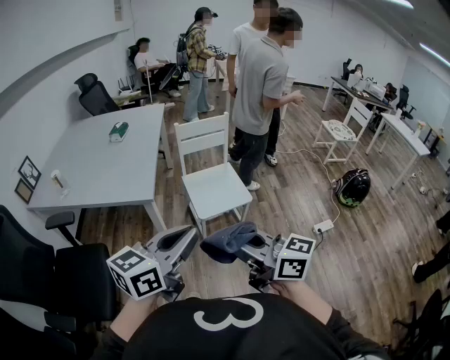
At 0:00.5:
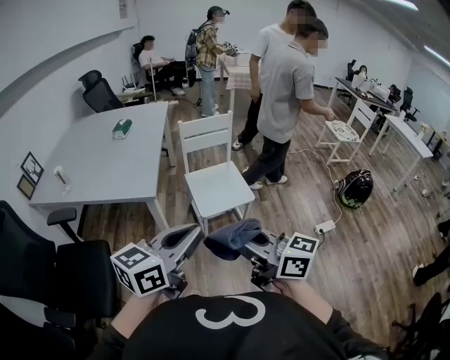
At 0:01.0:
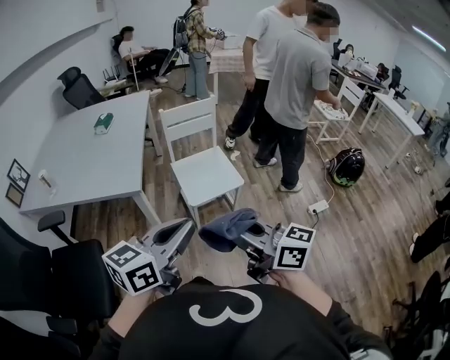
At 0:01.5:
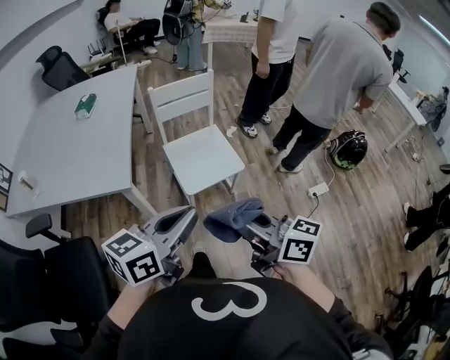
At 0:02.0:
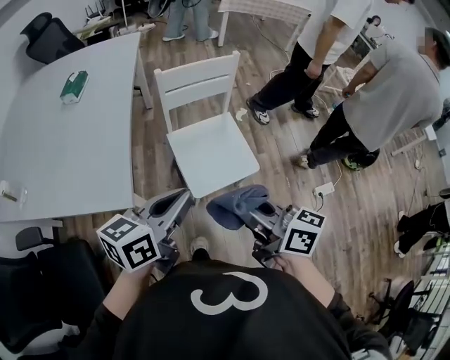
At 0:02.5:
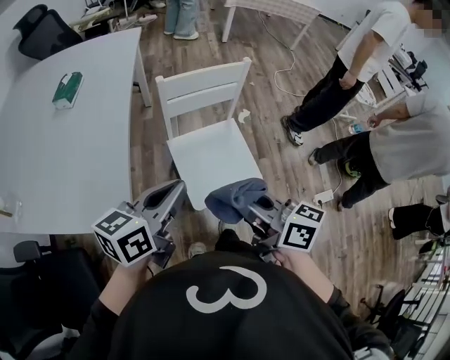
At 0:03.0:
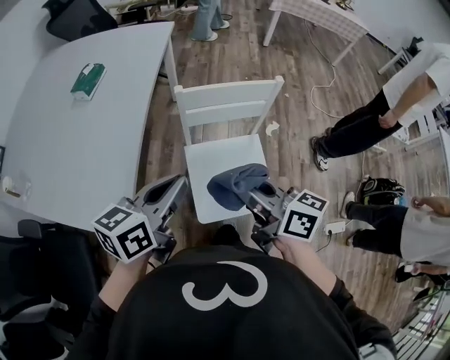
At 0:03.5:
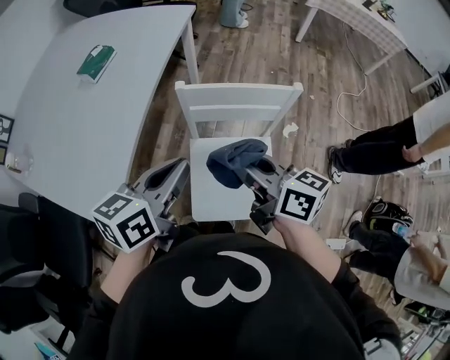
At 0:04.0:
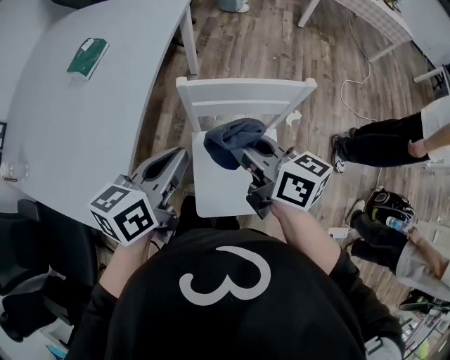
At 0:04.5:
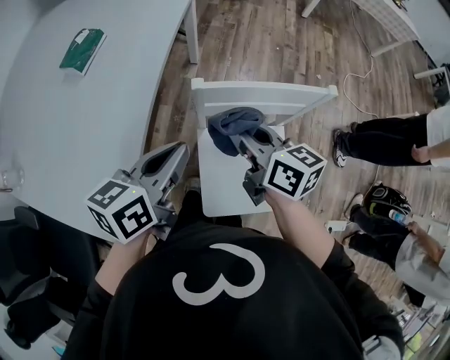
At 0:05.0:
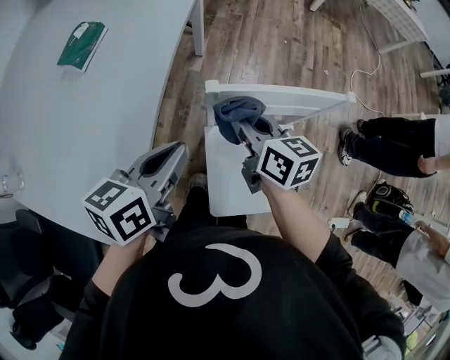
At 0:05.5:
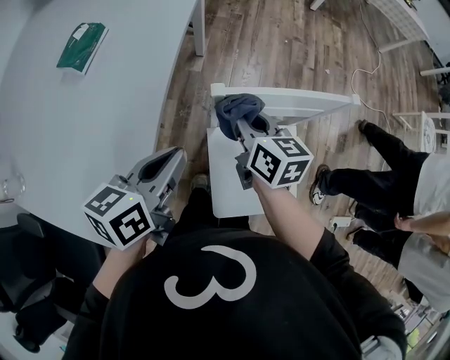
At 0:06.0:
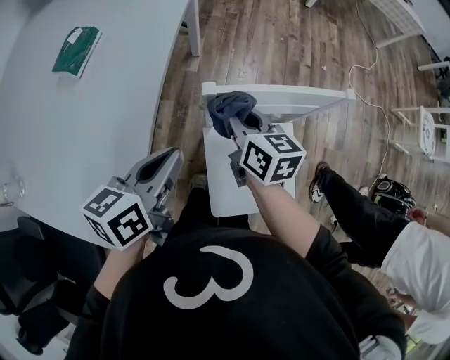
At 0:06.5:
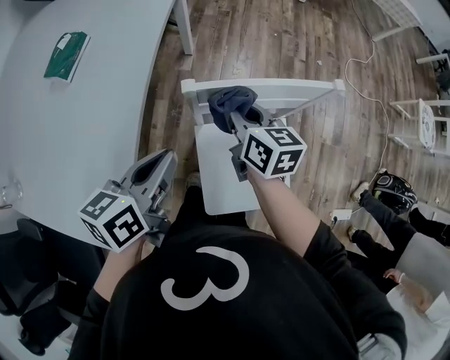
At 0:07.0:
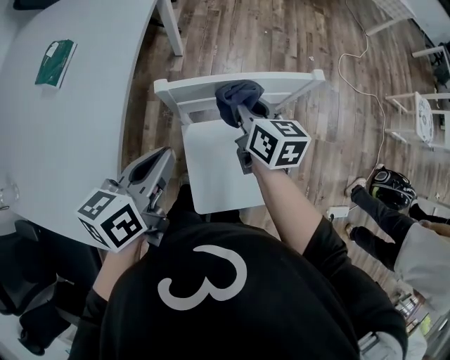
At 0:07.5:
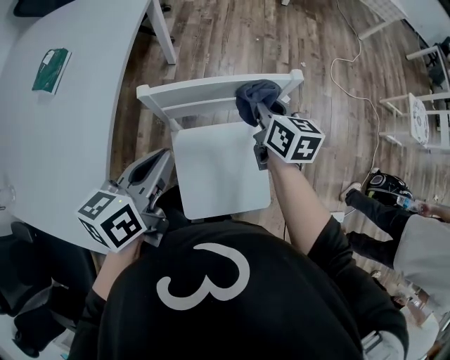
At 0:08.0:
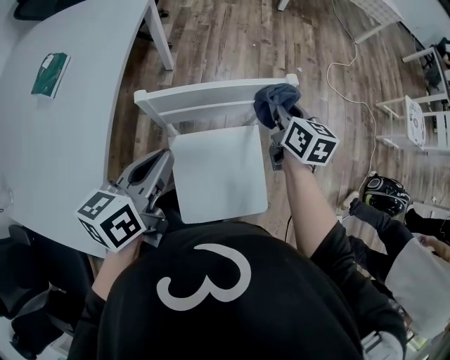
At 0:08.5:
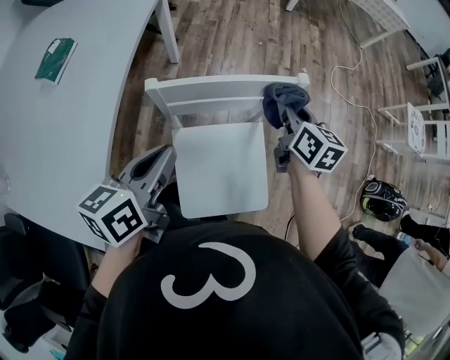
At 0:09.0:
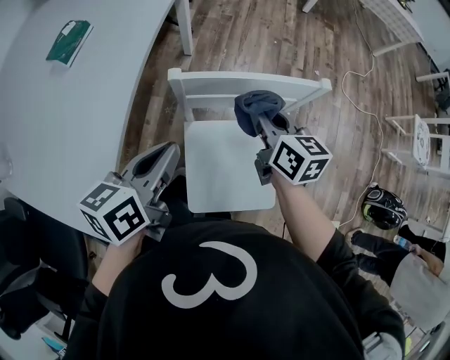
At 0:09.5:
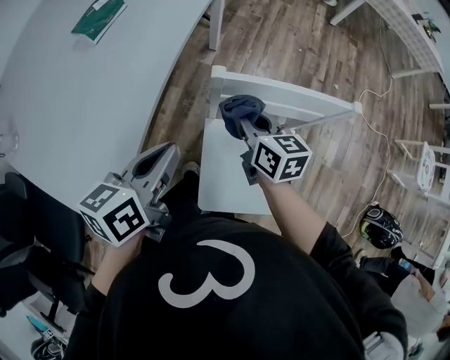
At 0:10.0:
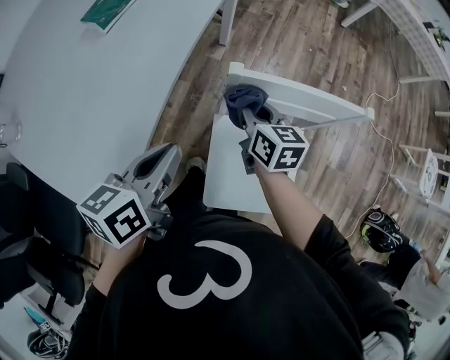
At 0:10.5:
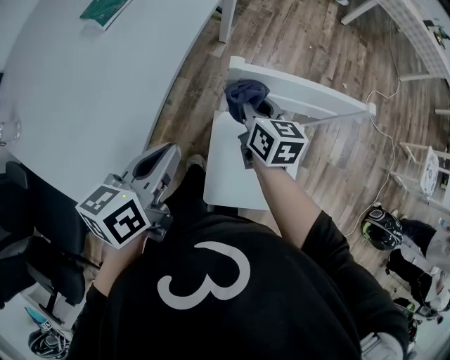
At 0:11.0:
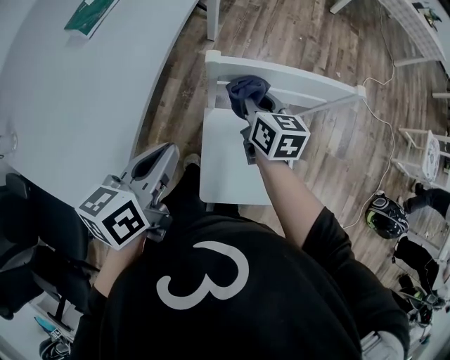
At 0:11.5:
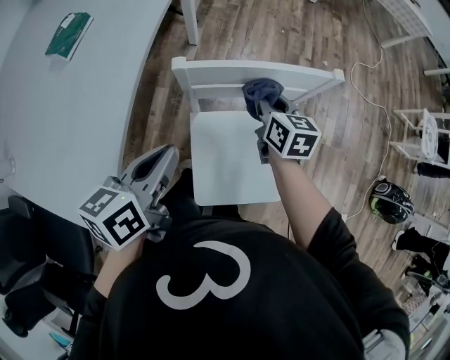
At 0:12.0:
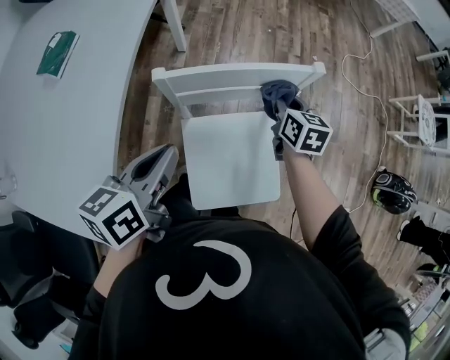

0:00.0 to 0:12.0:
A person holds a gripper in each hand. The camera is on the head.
0:00.0 to 0:02.0: Both grippers move forward, about 30 cm. The right gripper turns by approximately 20 degrees.
0:02.0 to 0:04.0: The two grippers go approximately 35 cm forward. The left gripper changes its angle by some 30 degrees.
0:04.0 to 0:06.0: The left gripper travels to the left, forward and downward by approximately 10 cm, while the right gripper travels forward, downward and to the left by roughly 20 cm, and turns by about 20 degrees.
0:06.0 to 0:08.0: The left gripper goes approximately 10 cm to the right. The right gripper shifts roughly 25 cm to the right.
0:08.0 to 0:10.0: The right gripper is displaced to the left by about 25 cm, and rotates approximately 20 degrees, while the left gripper travels to the left by approximately 15 cm.
0:10.0 to 0:12.0: The left gripper goes some 10 cm to the right. The right gripper travels to the right by some 25 cm, and swivels roughly 20 degrees.

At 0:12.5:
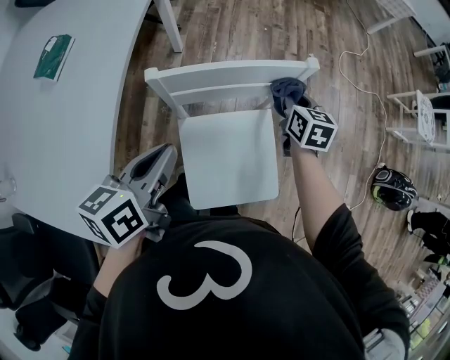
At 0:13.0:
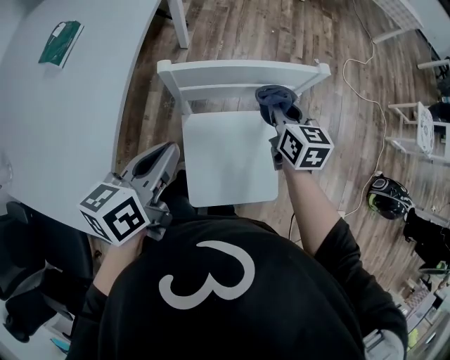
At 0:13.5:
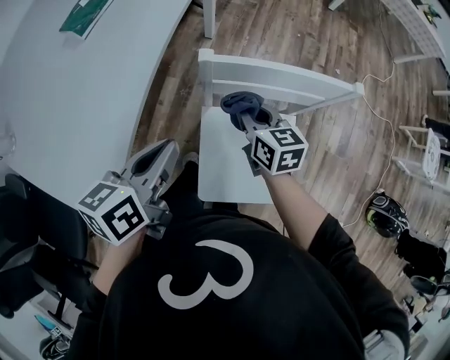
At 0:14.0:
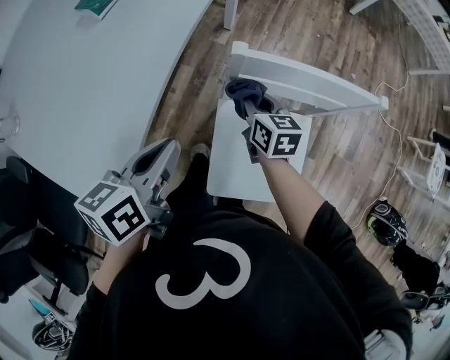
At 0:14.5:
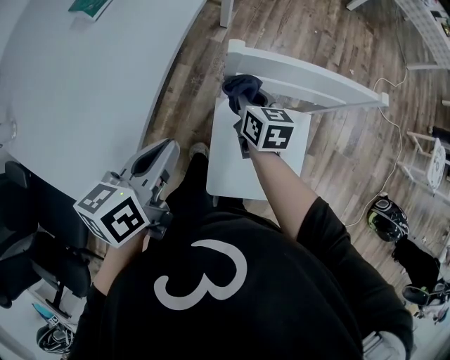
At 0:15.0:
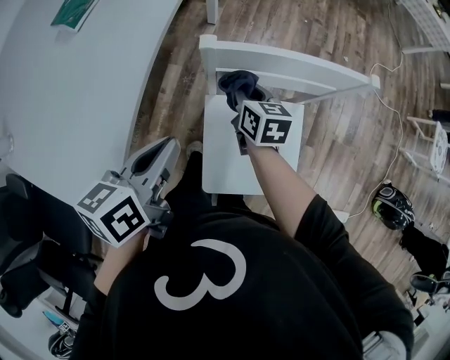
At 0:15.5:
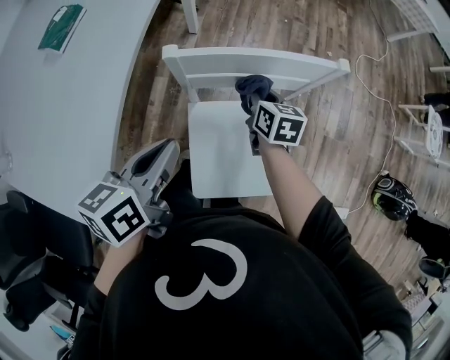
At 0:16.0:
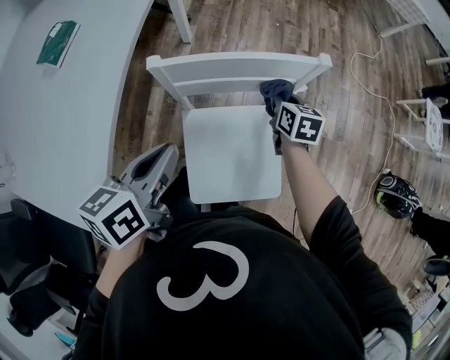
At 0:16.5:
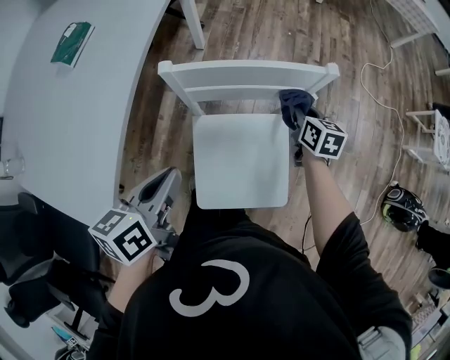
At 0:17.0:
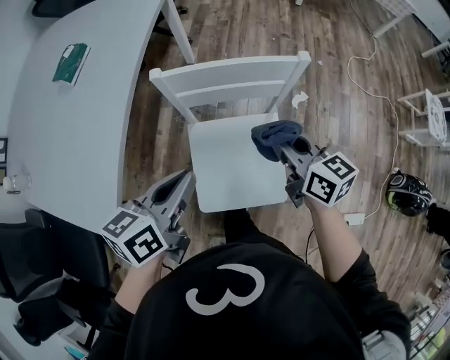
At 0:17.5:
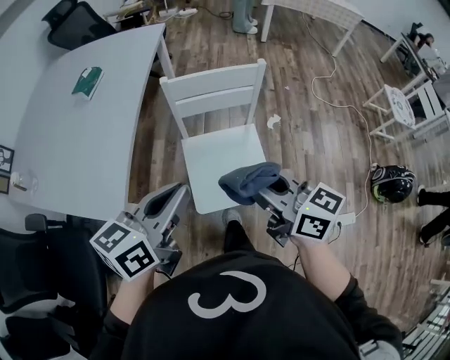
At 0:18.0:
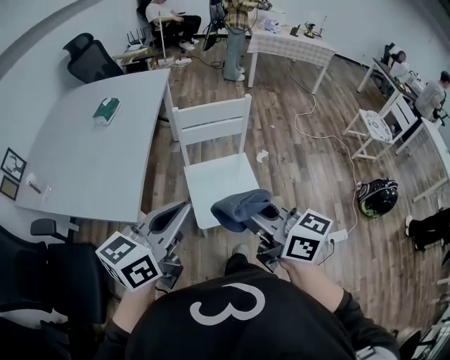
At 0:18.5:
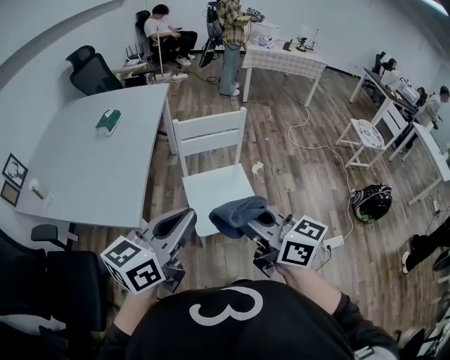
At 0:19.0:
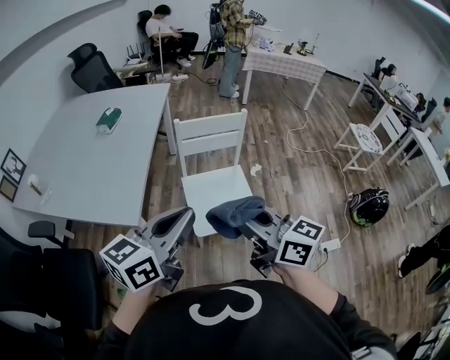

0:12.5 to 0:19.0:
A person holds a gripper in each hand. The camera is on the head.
0:12.5 to 0:14.5: The left gripper heads to the left, covering about 10 cm; the right gripper heads to the left, covering roughly 30 cm, and rotates roughly 20 degrees.
0:14.5 to 0:17.0: The right gripper moves to the right, upward and backward, approximately 30 cm, while the left gripper heads to the right, covering about 15 cm.
0:17.0 to 0:19.0: Both grippers move backward and upward, approximately 40 cm. The left gripper changes its angle by roughly 30 degrees.

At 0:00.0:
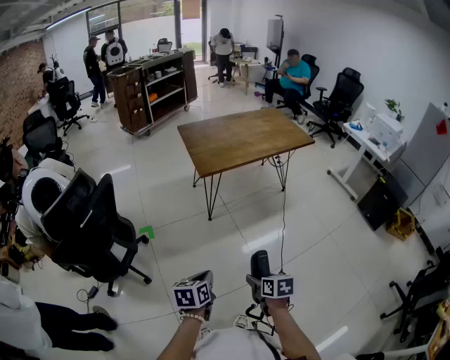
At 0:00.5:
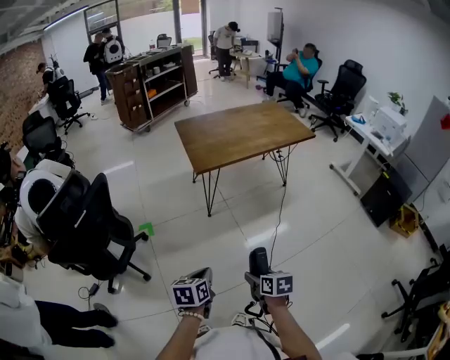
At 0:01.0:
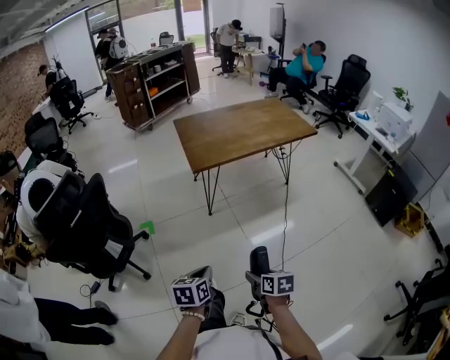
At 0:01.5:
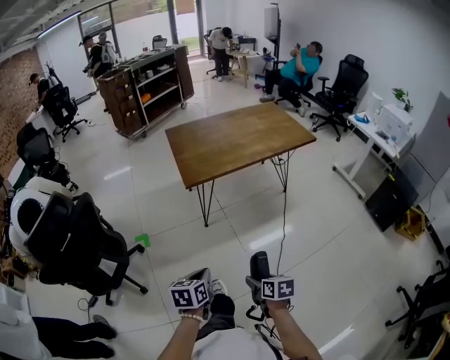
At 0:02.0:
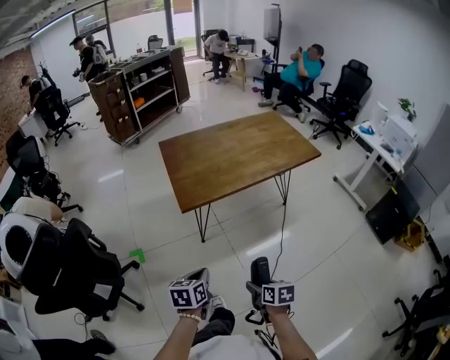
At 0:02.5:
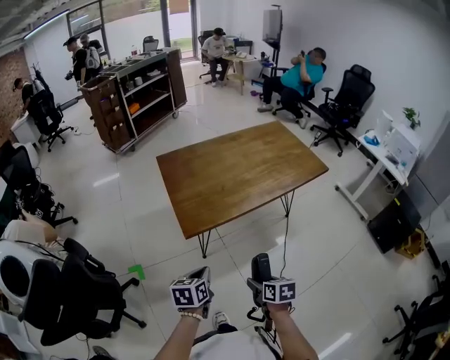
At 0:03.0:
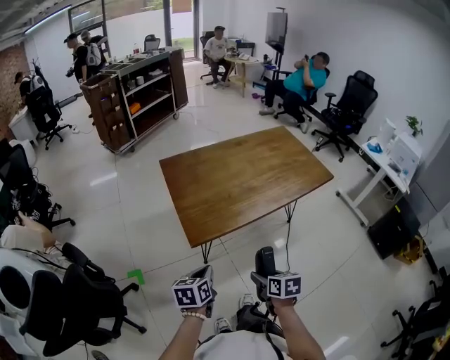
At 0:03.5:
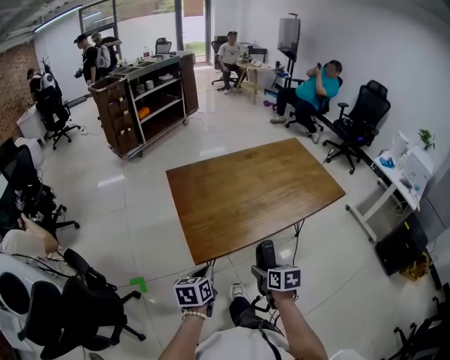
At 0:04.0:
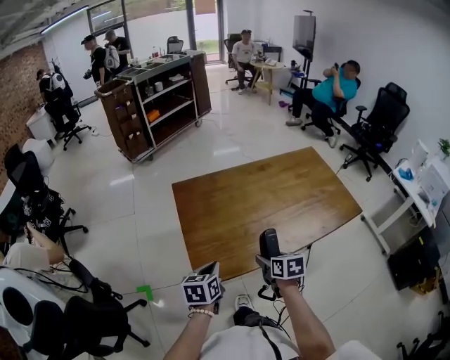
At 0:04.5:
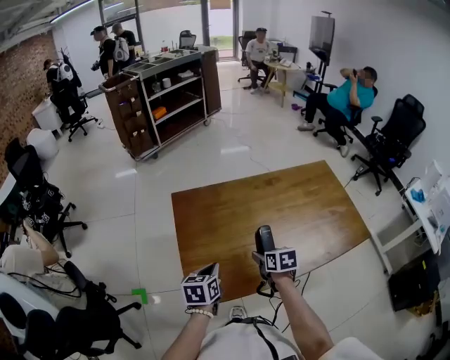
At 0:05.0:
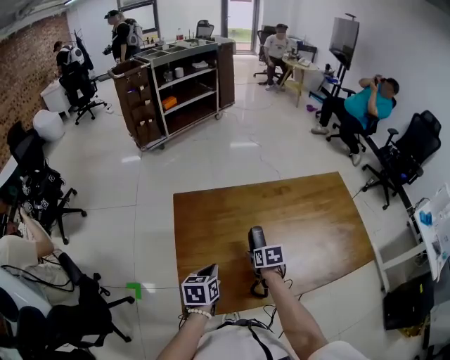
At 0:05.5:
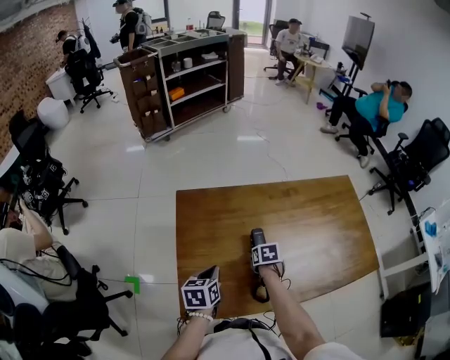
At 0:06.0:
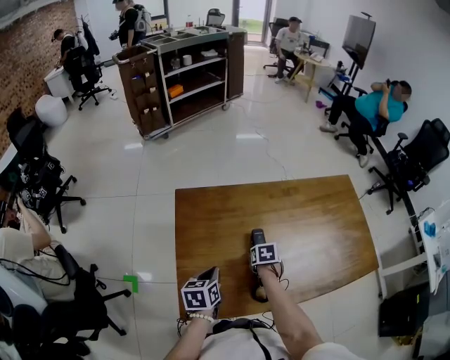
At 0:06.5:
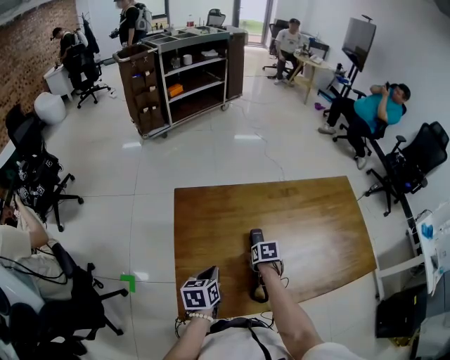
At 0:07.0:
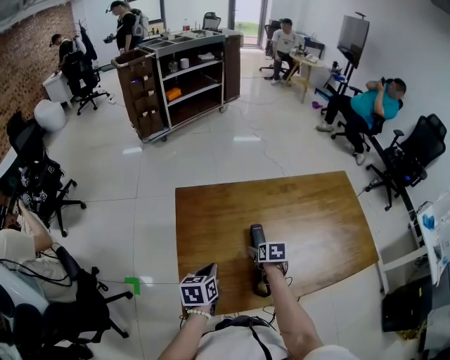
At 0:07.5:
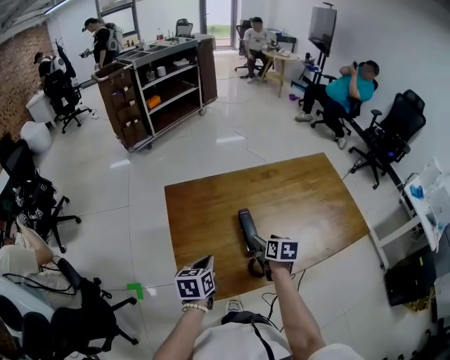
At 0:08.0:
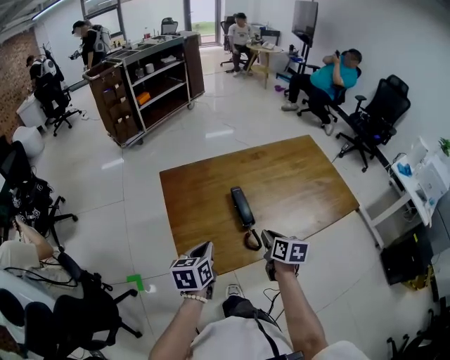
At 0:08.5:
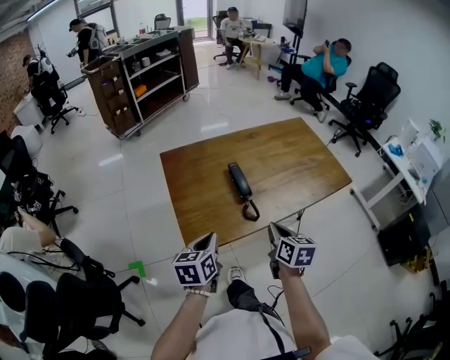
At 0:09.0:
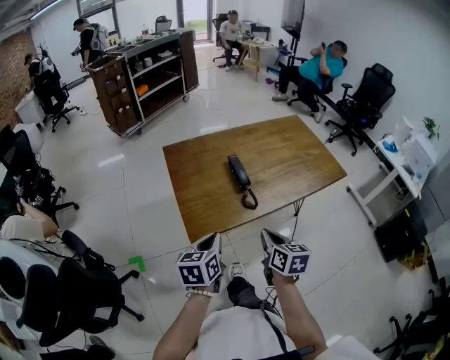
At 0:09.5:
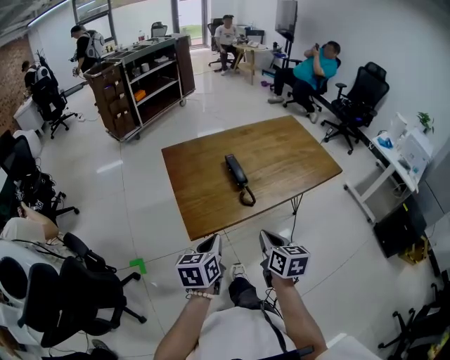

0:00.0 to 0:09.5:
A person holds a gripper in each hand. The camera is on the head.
0:00.0 to 0:02.0: The right gripper goes approximately 20 cm forward and to the right; the left gripper is displaced forward by roughly 25 cm.
0:02.0 to 0:04.0: Both grippers travel together forward, roughly 40 cm.
0:04.0 to 0:05.5: The left gripper is displaced forward and downward by roughly 15 cm. The right gripper shifts about 25 cm forward and downward, and turns by approximately 30 degrees.
0:05.5 to 0:07.5: The left gripper shifts by approximately 5 cm, while the right gripper heads upward and backward, covering some 10 cm, and changes its angle by some 30 degrees.
0:07.5 to 0:09.5: The two grippers go roughly 30 cm backward. The right gripper swivels roughly 20 degrees, and closes up.
